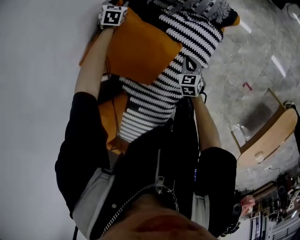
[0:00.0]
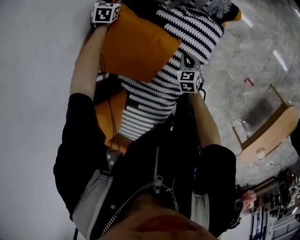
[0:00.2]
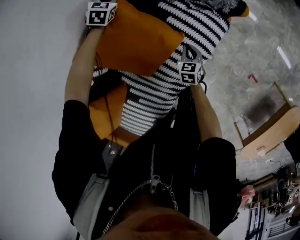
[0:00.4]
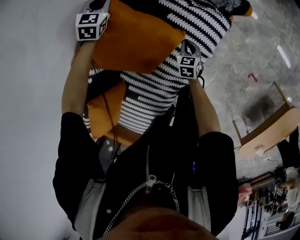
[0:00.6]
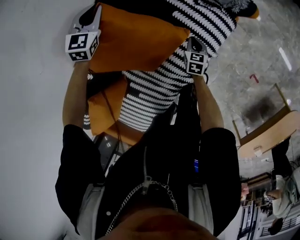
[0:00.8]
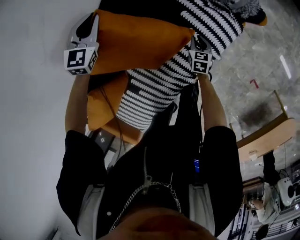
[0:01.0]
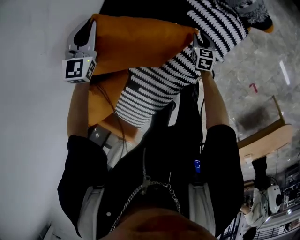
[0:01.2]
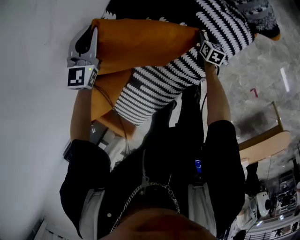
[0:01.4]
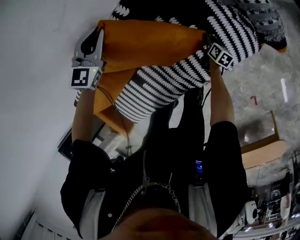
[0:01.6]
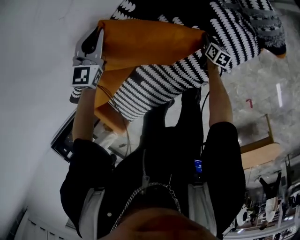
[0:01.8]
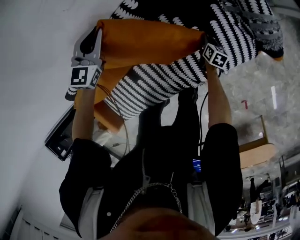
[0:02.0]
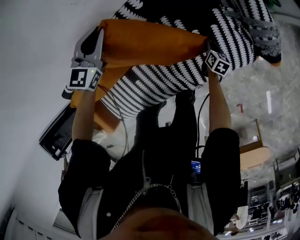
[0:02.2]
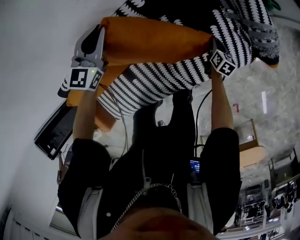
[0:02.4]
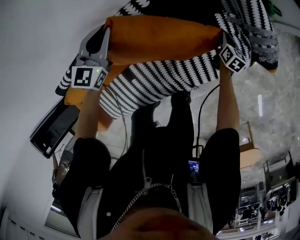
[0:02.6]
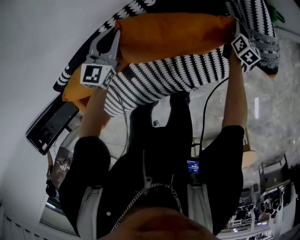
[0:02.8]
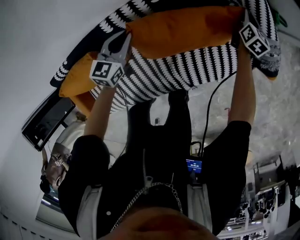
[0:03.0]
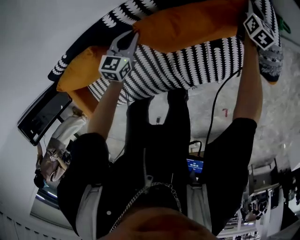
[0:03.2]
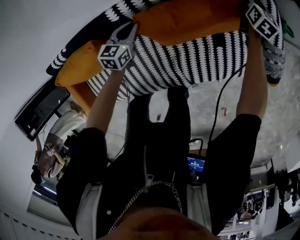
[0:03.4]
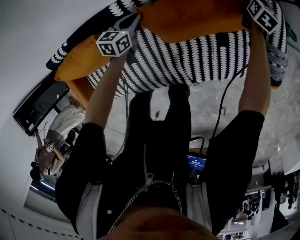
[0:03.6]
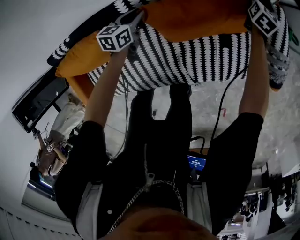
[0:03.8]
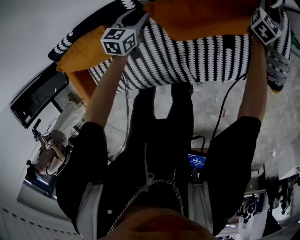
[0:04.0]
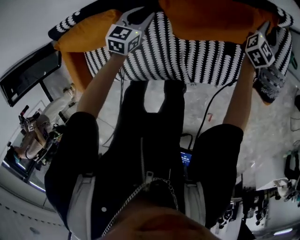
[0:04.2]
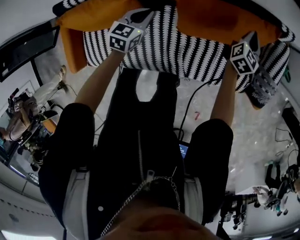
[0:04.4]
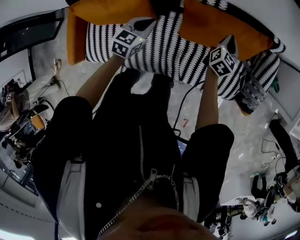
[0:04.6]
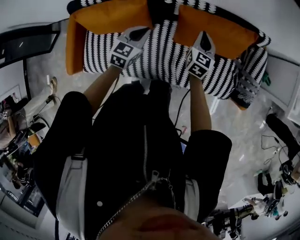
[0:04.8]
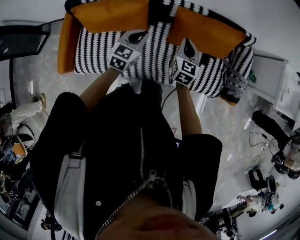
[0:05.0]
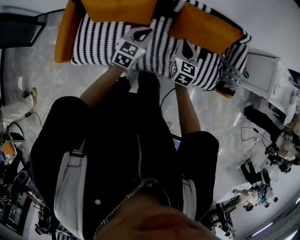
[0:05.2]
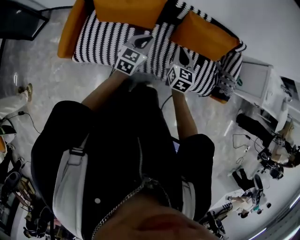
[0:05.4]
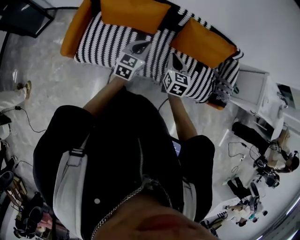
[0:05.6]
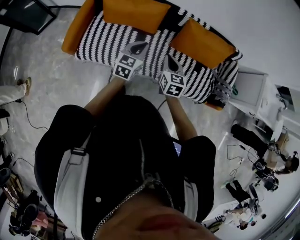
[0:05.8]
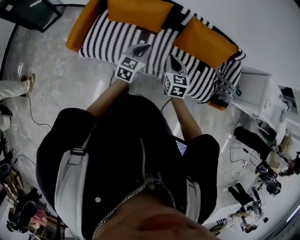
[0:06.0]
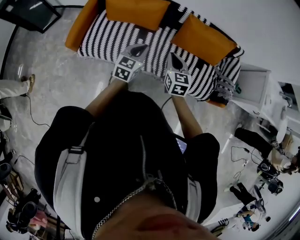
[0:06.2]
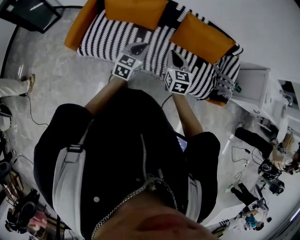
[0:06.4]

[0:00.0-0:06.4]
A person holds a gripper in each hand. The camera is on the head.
0:00.0 to 0:01.6: The left gripper is displaced backward, to the left and upward by some 35 cm, rotates about 20 degrees, and closes; the right gripper travels downward, to the left and forward by roughly 20 cm, turns by some 40 degrees, and opens.
0:01.6 to 0:03.2: The left gripper travels backward, downward and to the left by approximately 20 cm, and rotates some 40 degrees, while the right gripper goes some 35 cm forward and upward, twists approximately 40 degrees counterclockwise, seen from behind, and closes.
0:03.2 to 0:04.8: The left gripper moves approximately 25 cm; the right gripper changes place by about 40 cm, rotates approximately 30 degrees, and opens and closes again.
0:04.8 to 0:06.4: The right gripper moves backward and to the left, approximately 40 cm, and swivels roughly 30 degrees. The left gripper goes some 30 cm backward.

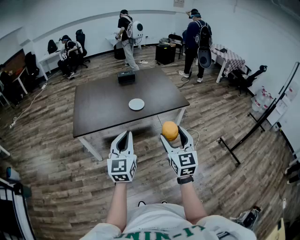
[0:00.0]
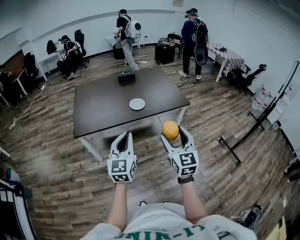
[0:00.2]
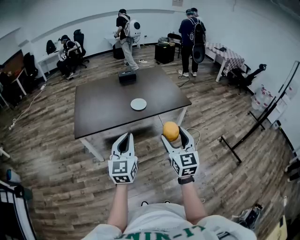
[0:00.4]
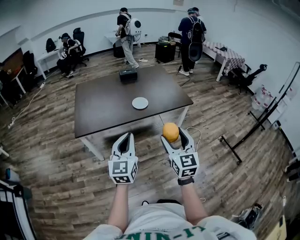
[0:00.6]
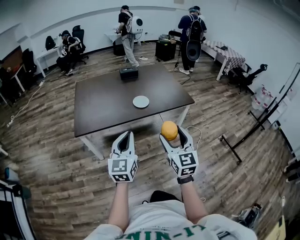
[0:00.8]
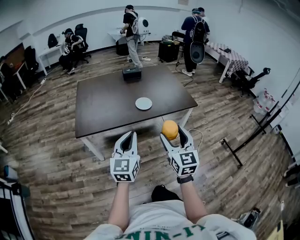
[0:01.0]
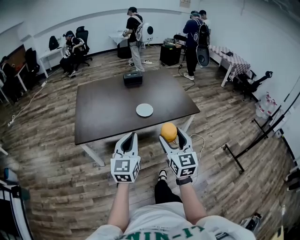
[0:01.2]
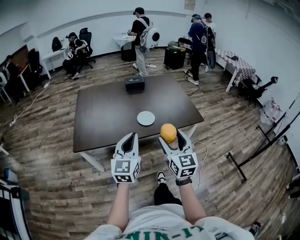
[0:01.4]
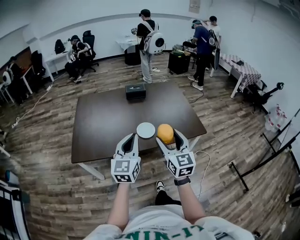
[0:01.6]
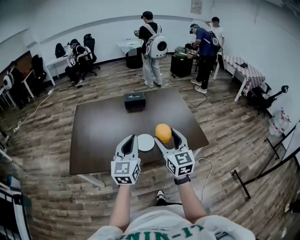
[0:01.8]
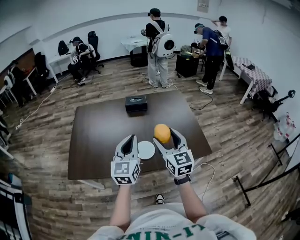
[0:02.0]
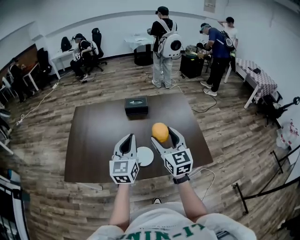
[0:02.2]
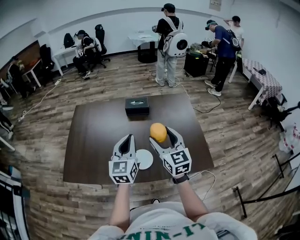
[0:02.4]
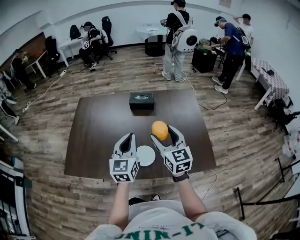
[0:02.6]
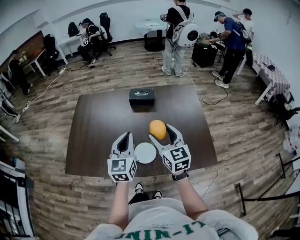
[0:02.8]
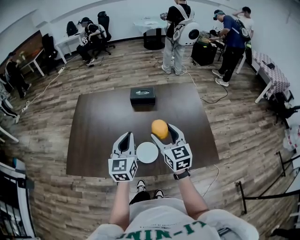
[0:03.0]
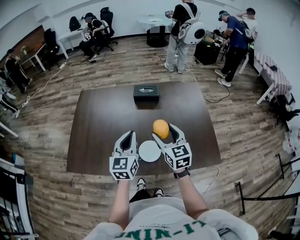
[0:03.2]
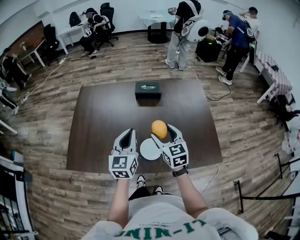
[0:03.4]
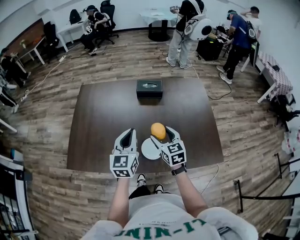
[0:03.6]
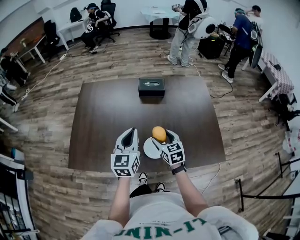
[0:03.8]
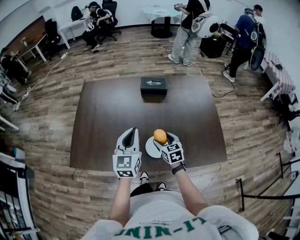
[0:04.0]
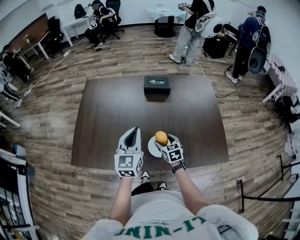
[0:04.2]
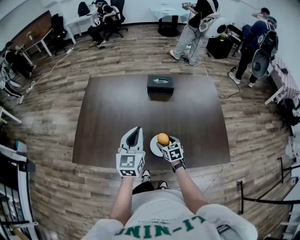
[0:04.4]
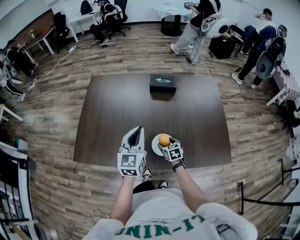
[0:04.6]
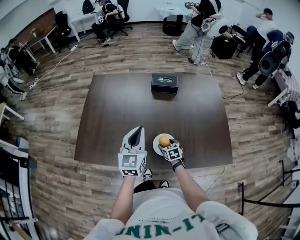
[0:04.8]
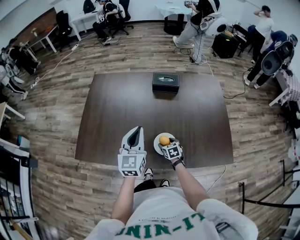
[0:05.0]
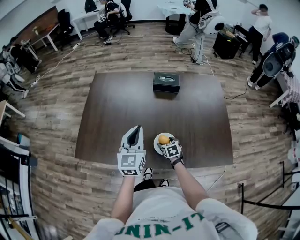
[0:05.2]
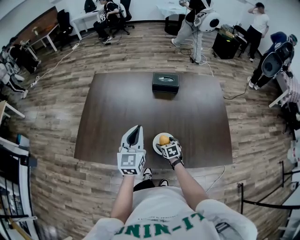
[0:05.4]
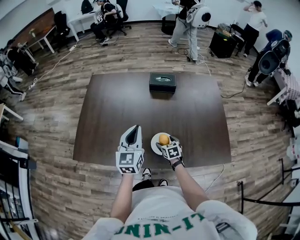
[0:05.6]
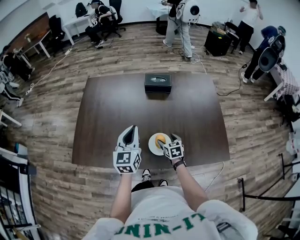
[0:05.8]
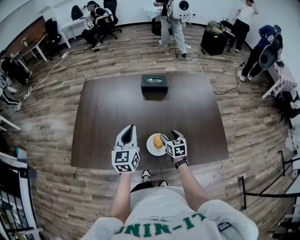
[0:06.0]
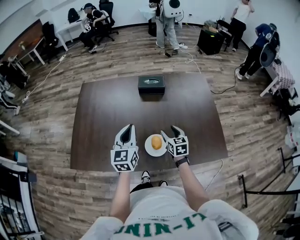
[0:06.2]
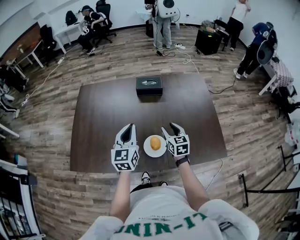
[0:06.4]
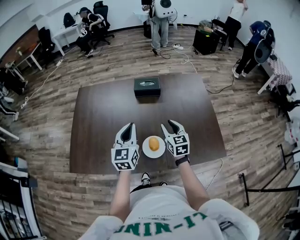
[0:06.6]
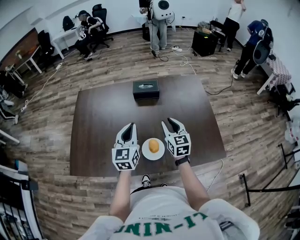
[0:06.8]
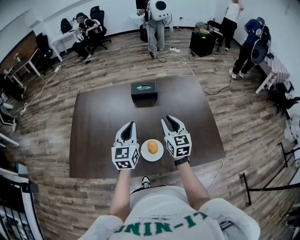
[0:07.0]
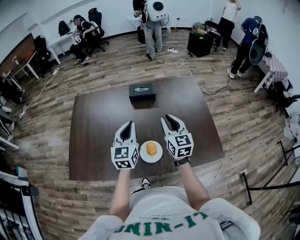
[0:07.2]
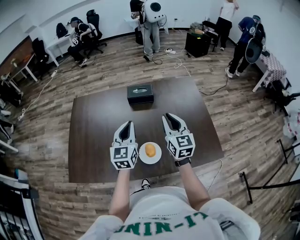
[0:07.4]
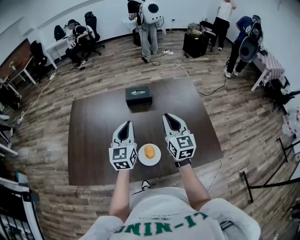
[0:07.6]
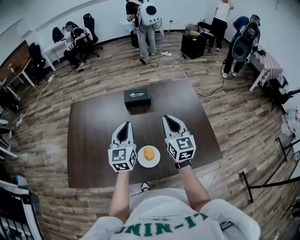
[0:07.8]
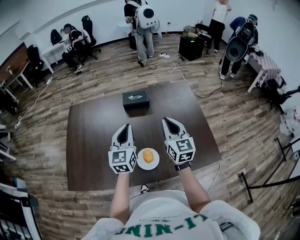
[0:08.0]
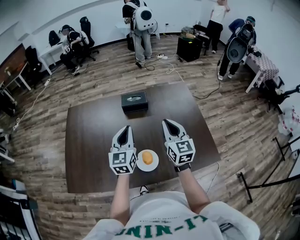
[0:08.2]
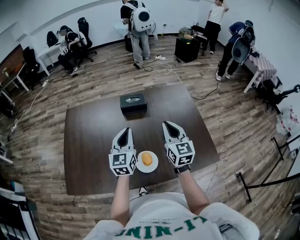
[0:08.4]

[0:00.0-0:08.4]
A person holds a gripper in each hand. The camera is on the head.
0:00.0 to 0:01.4: The two grippers go some 20 cm forward.
0:01.4 to 0:02.8: The two grippers travel together, forward, approximately 50 cm. The right gripper turns by roughly 20 degrees.
0:02.8 to 0:04.2: The left gripper goes about 10 cm to the left and downward; the right gripper is displaced downward by approximately 25 cm, and turns by roughly 30 degrees.
0:04.2 to 0:05.6: The right gripper travels downward by some 10 cm.
0:05.6 to 0:07.0: The left gripper is displaced to the right by some 5 cm; the right gripper travels upward by some 30 cm, tilts its fingers approximately 40 degrees upward, and closes its fingers.
0:07.0 to 0:08.4: The right gripper travels upward by approximately 5 cm.

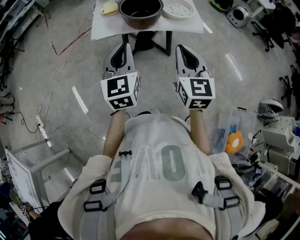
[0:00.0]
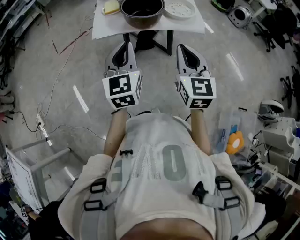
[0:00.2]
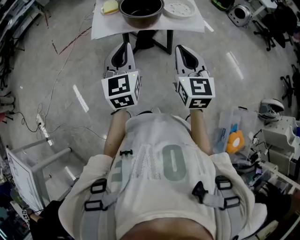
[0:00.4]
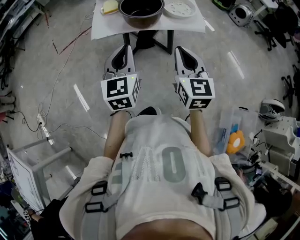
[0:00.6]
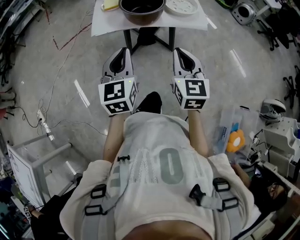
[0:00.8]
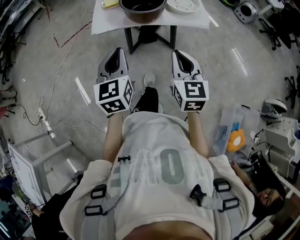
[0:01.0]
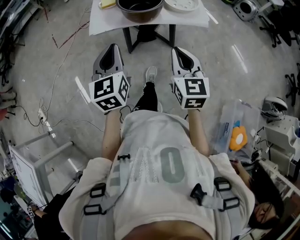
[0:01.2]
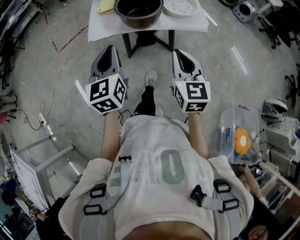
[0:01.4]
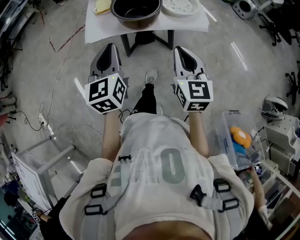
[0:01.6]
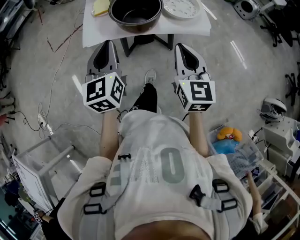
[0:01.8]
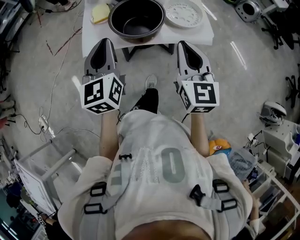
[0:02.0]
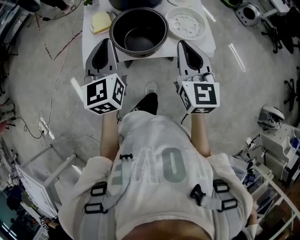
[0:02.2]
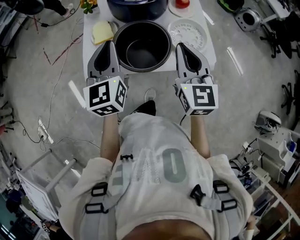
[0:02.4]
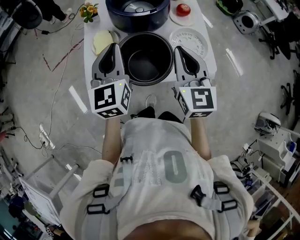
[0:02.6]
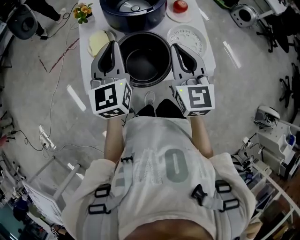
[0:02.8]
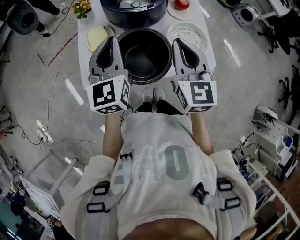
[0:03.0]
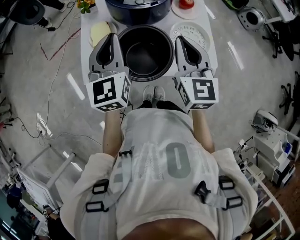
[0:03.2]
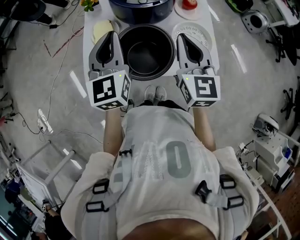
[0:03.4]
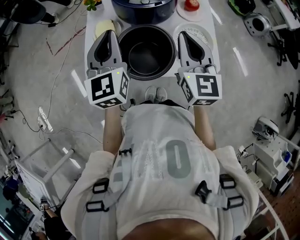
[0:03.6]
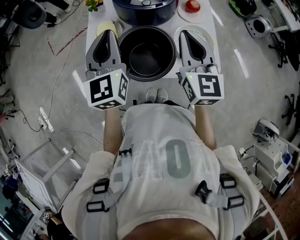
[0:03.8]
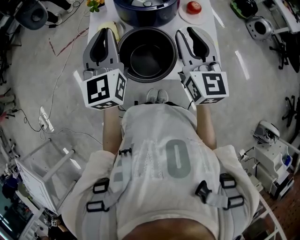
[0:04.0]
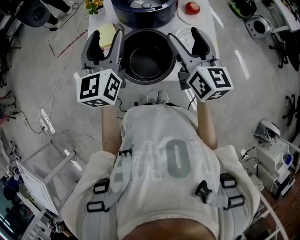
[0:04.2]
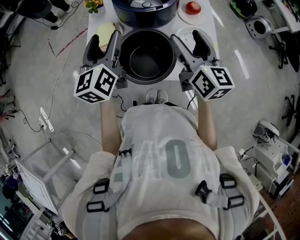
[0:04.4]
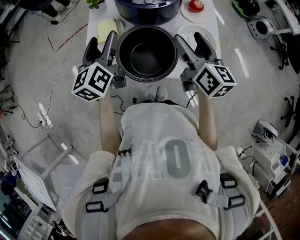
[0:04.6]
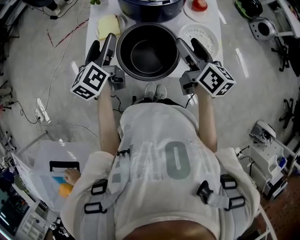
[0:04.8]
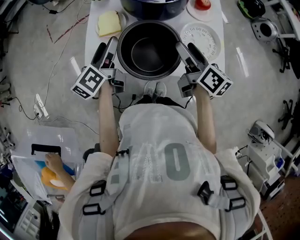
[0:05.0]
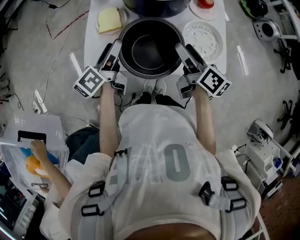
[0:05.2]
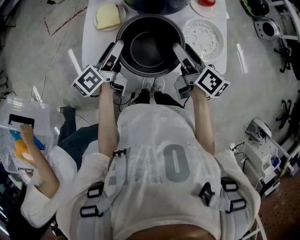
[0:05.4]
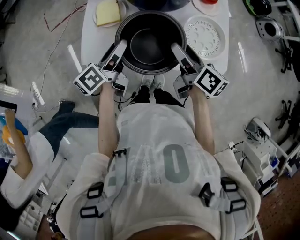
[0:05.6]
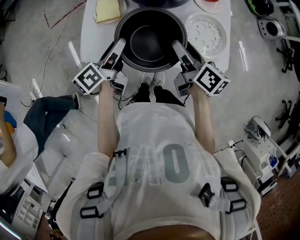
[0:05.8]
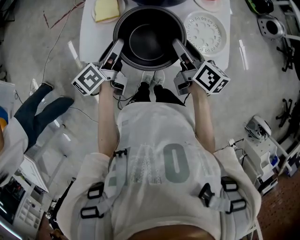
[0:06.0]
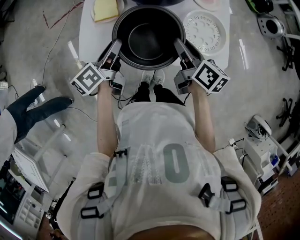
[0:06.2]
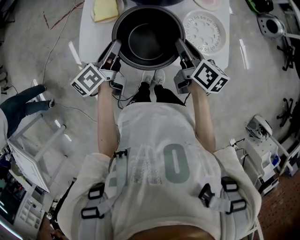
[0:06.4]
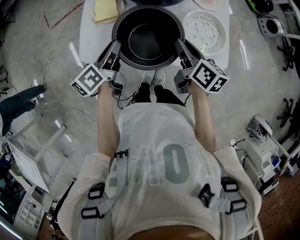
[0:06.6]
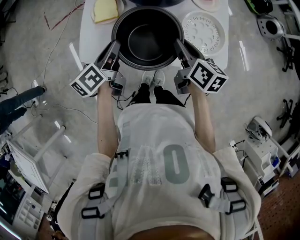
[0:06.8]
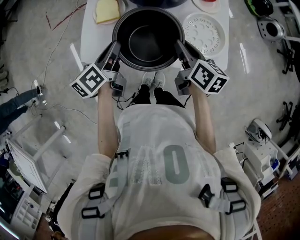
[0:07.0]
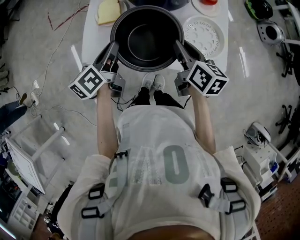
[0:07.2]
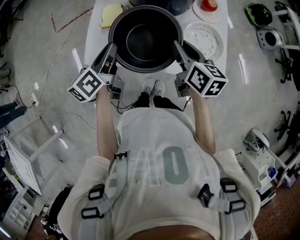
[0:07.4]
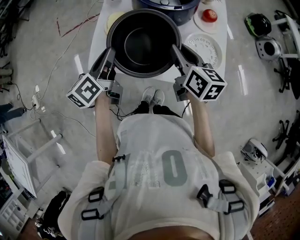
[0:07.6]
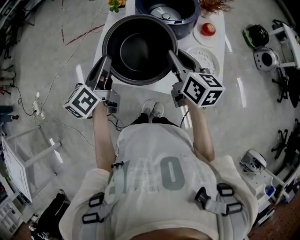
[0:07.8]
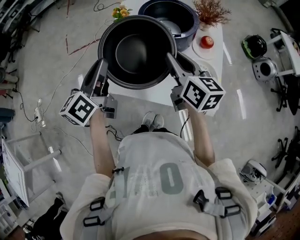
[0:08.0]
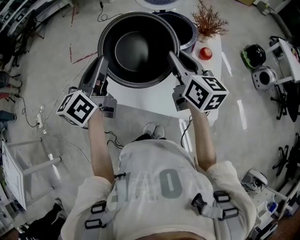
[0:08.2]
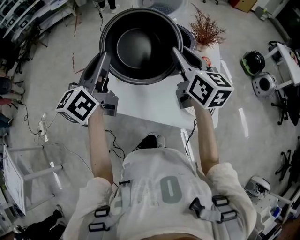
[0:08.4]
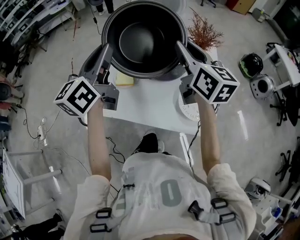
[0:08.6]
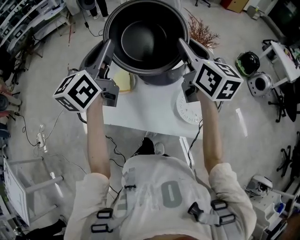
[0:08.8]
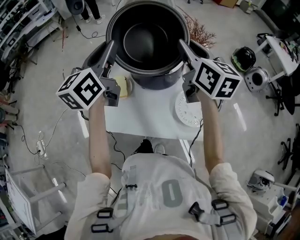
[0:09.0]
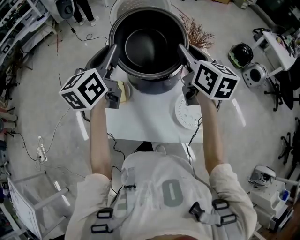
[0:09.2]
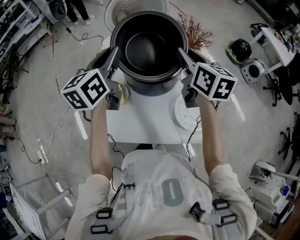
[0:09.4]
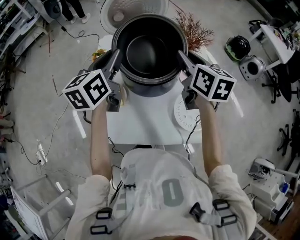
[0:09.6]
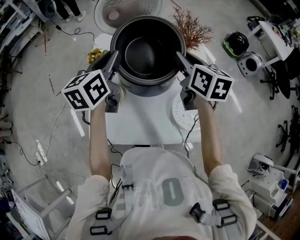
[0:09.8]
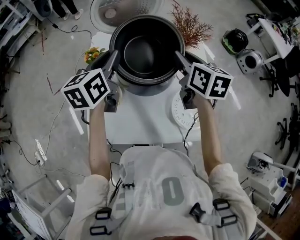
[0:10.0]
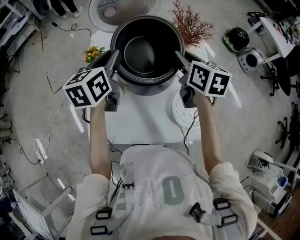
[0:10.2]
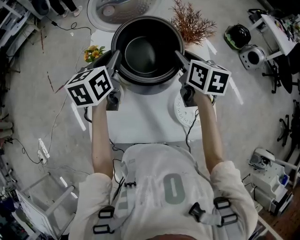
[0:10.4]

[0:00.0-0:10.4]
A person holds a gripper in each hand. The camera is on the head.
0:00.0 to 0:01.4: The left gripper heads forward, covering approximately 5 cm; the right gripper changes place by about 5 cm.
0:01.4 to 0:03.0: The grippers both shift forward by about 35 cm.
0:03.0 to 0:04.4: The left gripper opens. Meanwhile the right gripper changes its angle by about 30 degrees, and opens.
0:04.4 to 0:06.0: The grippers both shift downward by roughly 15 cm. The left gripper rotates around the line of its fingers by some 40 degrees, counterclockwise from behind. Meanwhile the right gripper rotates roughly 30 degrees.
0:06.0 to 0:07.4: The right gripper changes its angle by roughly 20 degrees, and closes up; the left gripper closes up.
0:07.4 to 0:09.0: The grippers both shift upward and forward by approximately 30 cm. The right gripper turns by approximately 20 degrees, while the left gripper swivels some 30 degrees.
0:09.0 to 0:10.4: Both grippers move downward and forward, about 20 cm. The left gripper turns by approximately 30 degrees. Meanwhile the right gripper turns by approximately 20 degrees.
